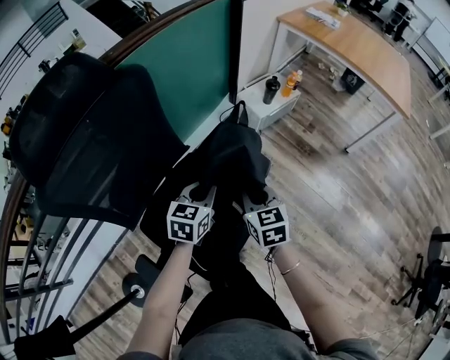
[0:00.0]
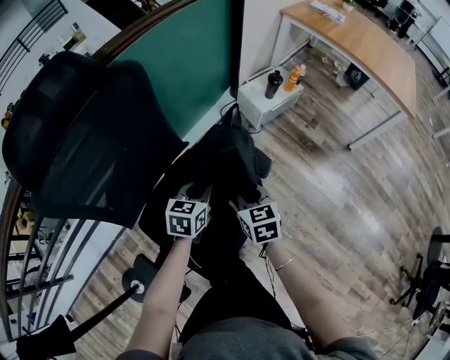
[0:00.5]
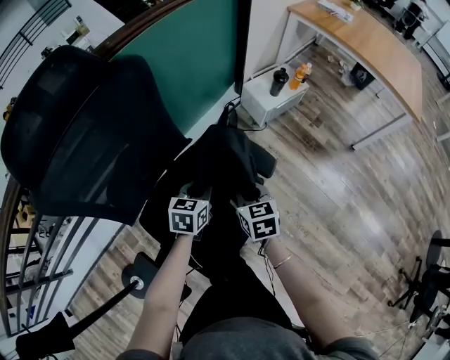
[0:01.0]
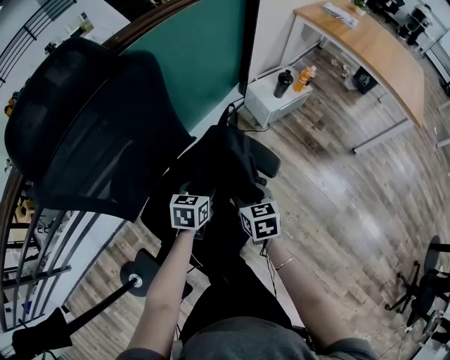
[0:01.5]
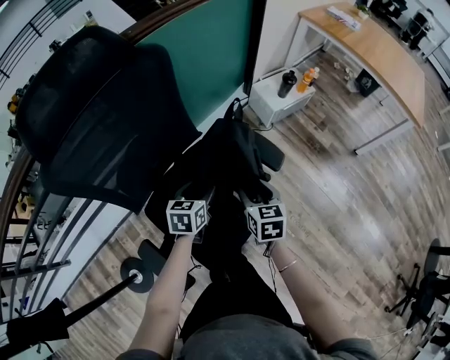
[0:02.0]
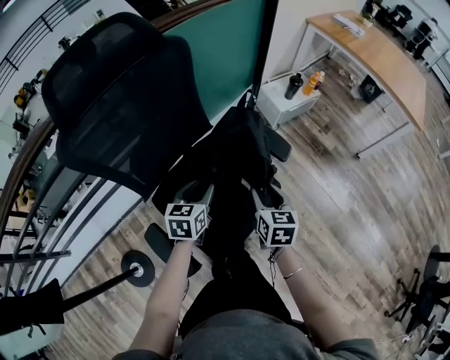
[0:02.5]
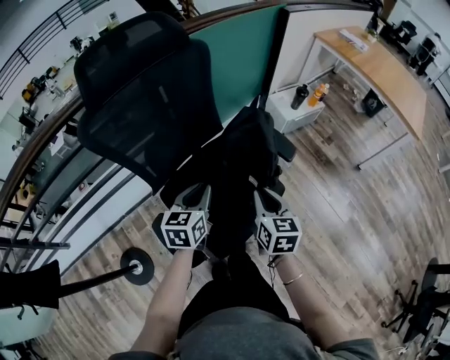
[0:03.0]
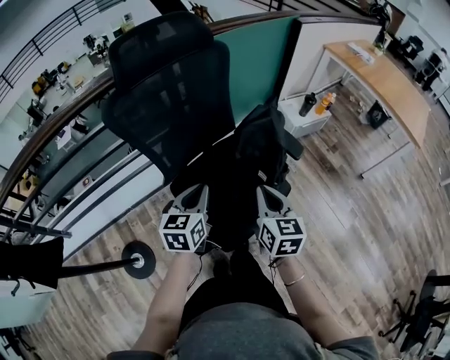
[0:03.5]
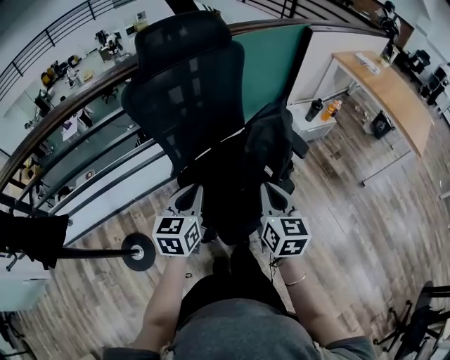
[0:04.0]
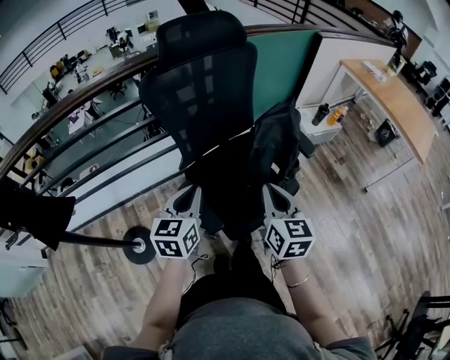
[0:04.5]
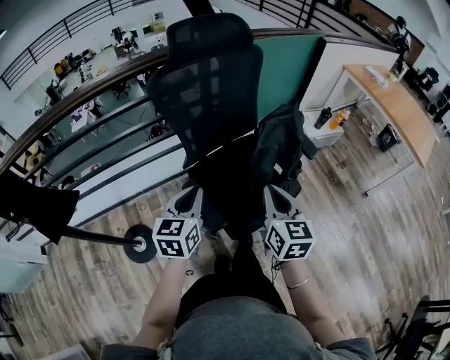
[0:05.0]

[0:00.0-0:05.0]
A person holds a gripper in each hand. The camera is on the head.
0:00.0 to 0:02.5: The right gripper moves backward, about 5 cm, and opens up; the left gripper heads to the left and backward, covering some 15 cm, and opens up.
0:02.5 to 0:05.0: The right gripper travels backward, upward and to the left by some 25 cm, turns by approximately 20 degrees, and closes, while the left gripper shifts about 30 cm backward, to the left and upward, turns by approximately 20 degrees, and closes up.

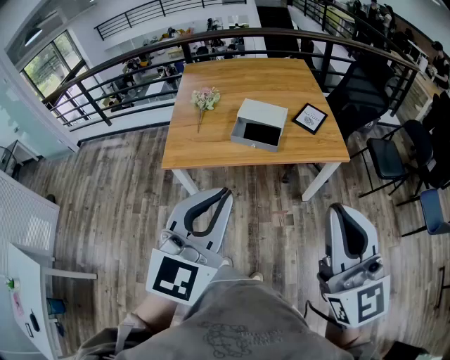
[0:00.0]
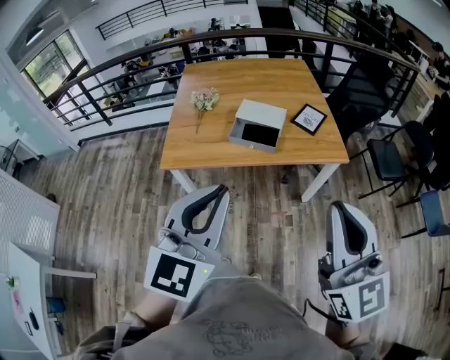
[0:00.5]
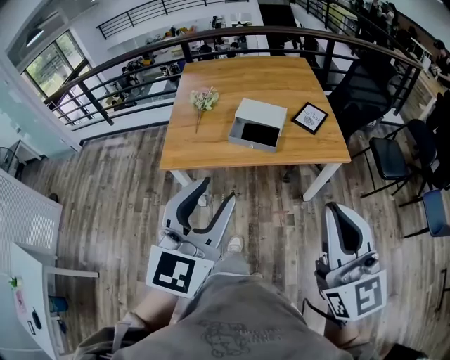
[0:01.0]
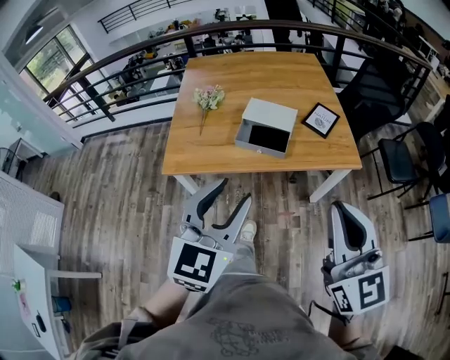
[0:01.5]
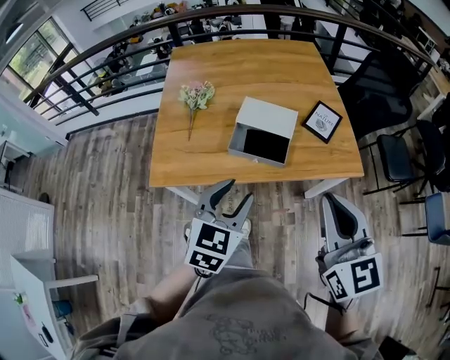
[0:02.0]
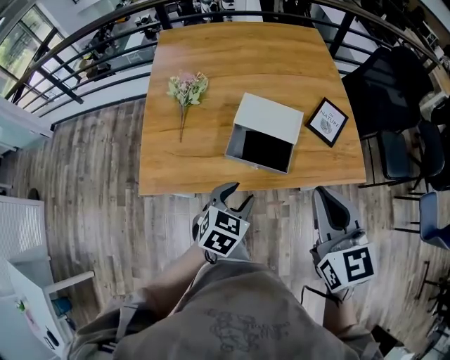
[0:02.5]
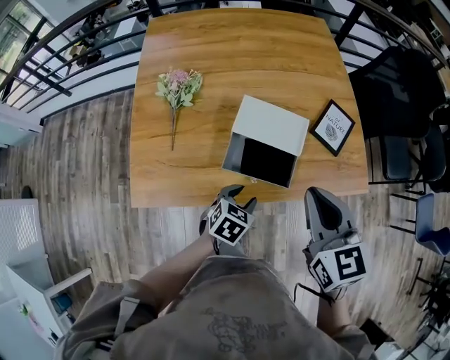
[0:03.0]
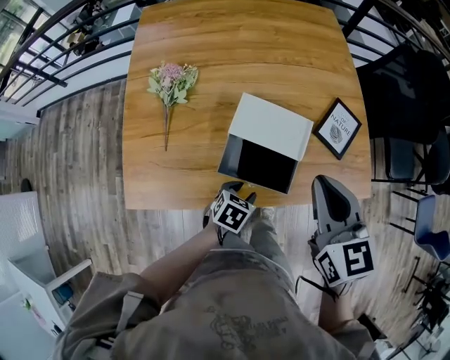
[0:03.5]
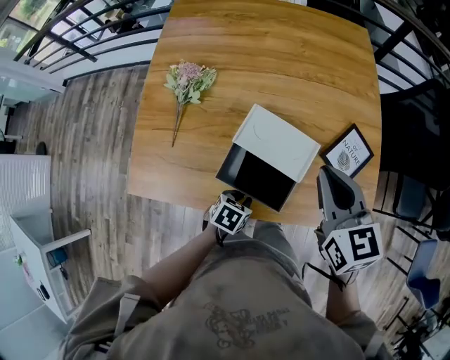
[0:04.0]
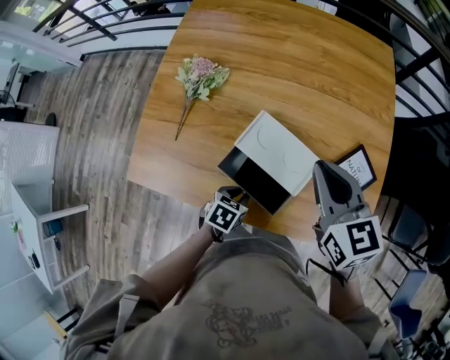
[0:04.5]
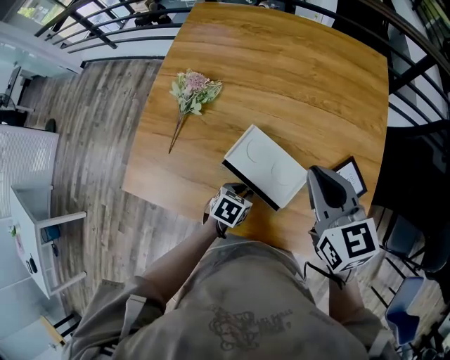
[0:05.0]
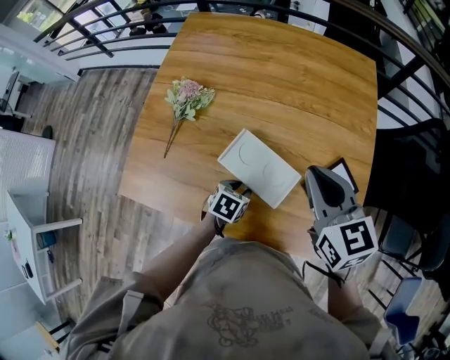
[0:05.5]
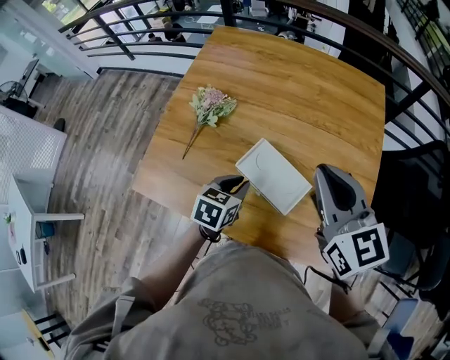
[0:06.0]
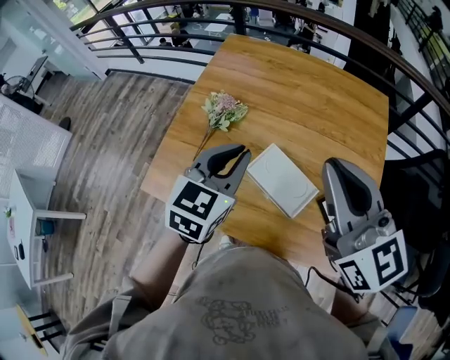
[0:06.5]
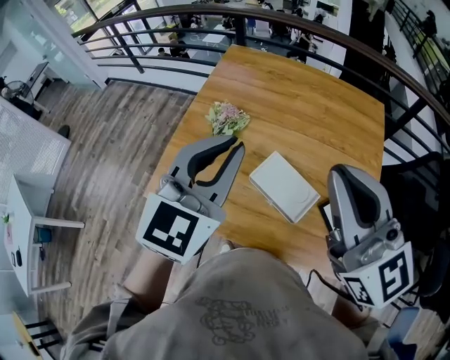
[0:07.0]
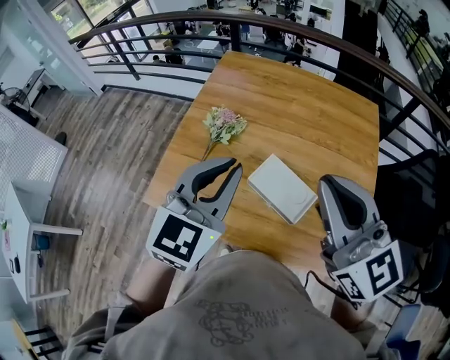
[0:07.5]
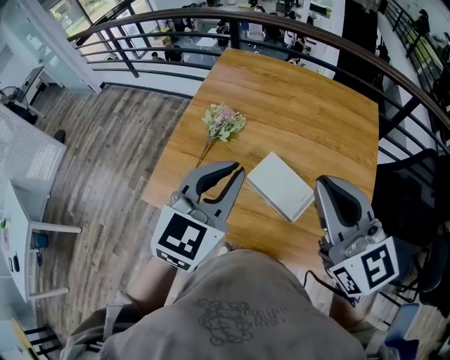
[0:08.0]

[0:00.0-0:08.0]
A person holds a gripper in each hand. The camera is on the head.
0:00.0 to 0:02.0: Both grippers move forward and downward, approximately 25 cm. The left gripper changes its angle by roughly 20 degrees, and opens.
0:02.0 to 0:04.0: The left gripper moves downward and forward, some 35 cm, tips its fingers downward by about 30 degrees, and closes up; the right gripper moves forward, about 30 cm, and swivels some 20 degrees.
0:04.0 to 0:06.0: The right gripper shifts about 10 cm upward, and rotates approximately 20 degrees. The left gripper shifts some 15 cm upward, and turns by some 30 degrees.
0:06.0 to 0:08.0: The left gripper heads upward, covering roughly 25 cm, and changes its angle by roughly 40 degrees; the right gripper travels upward, to the left and backward by some 10 cm.

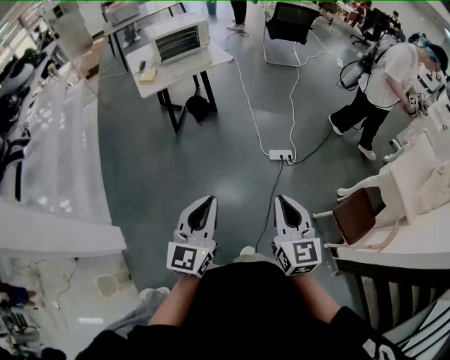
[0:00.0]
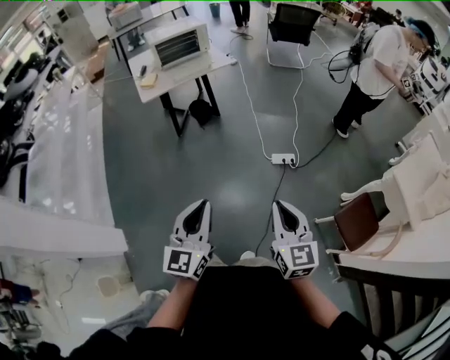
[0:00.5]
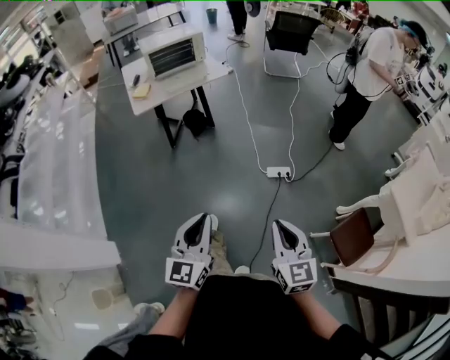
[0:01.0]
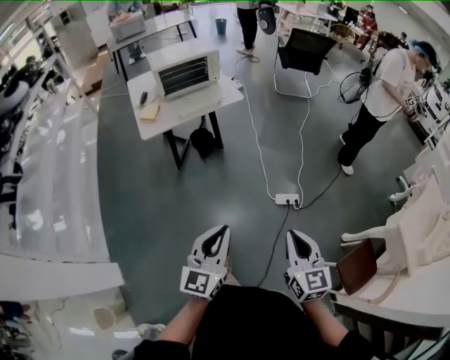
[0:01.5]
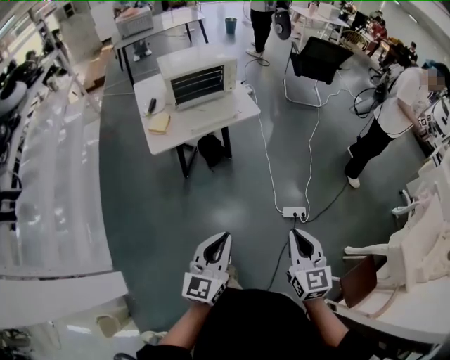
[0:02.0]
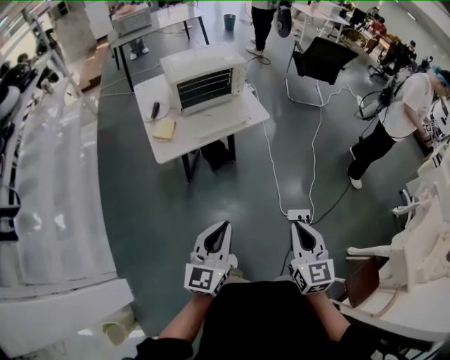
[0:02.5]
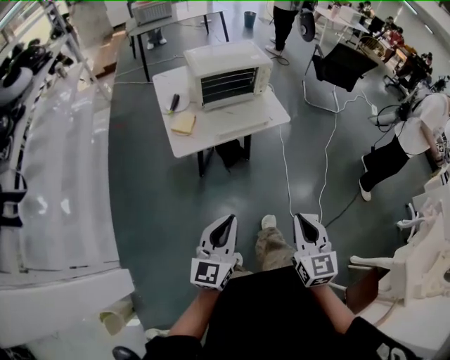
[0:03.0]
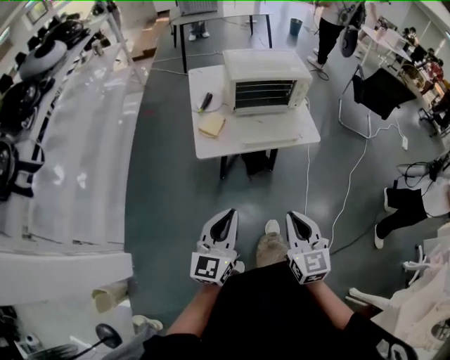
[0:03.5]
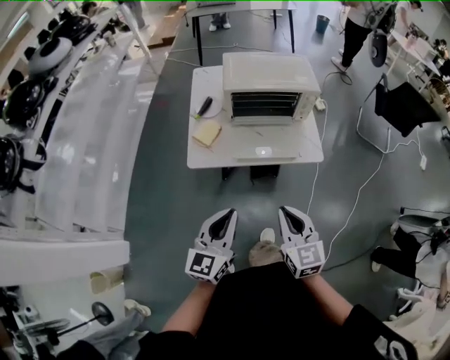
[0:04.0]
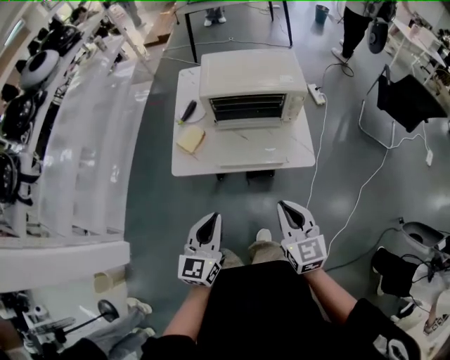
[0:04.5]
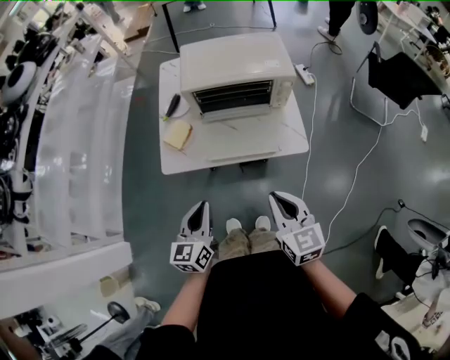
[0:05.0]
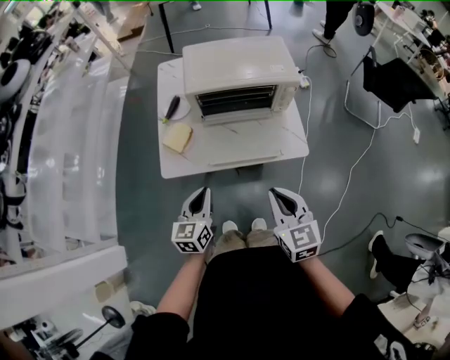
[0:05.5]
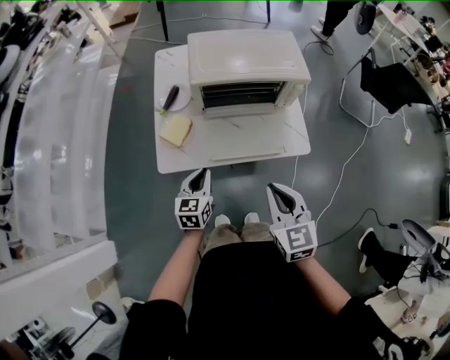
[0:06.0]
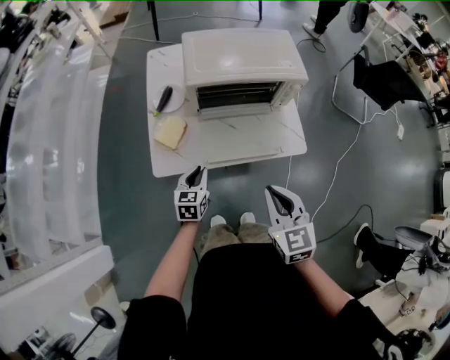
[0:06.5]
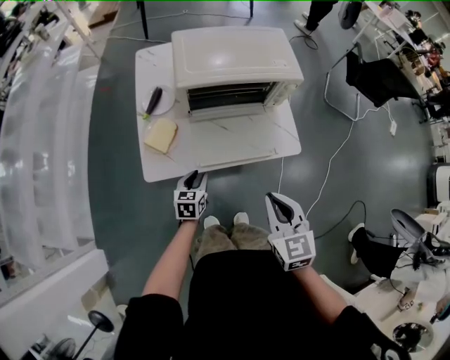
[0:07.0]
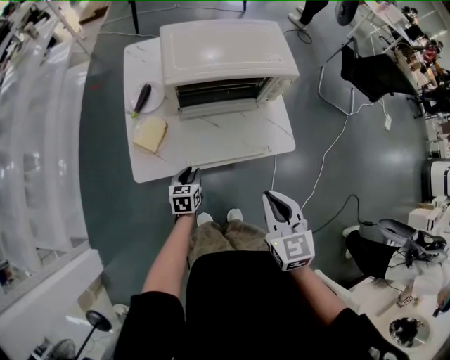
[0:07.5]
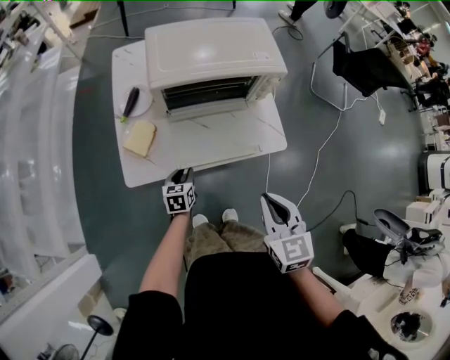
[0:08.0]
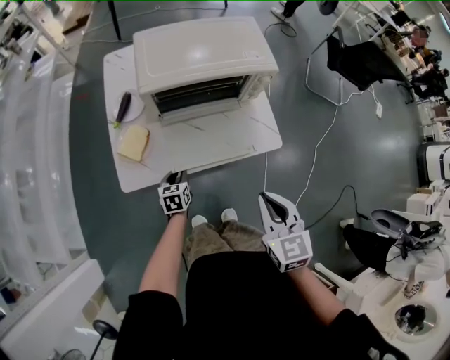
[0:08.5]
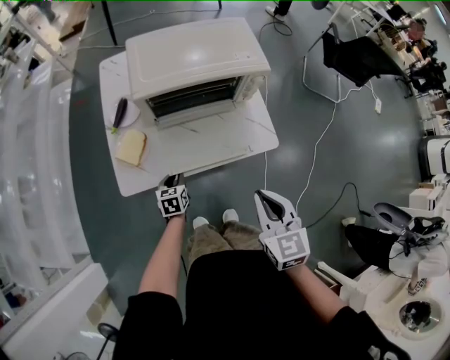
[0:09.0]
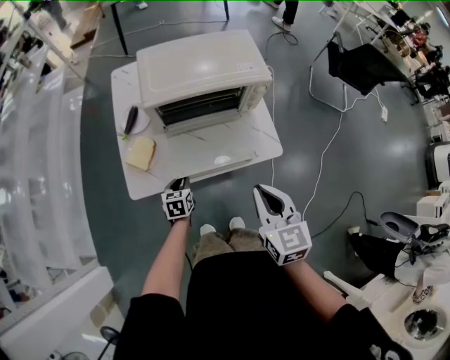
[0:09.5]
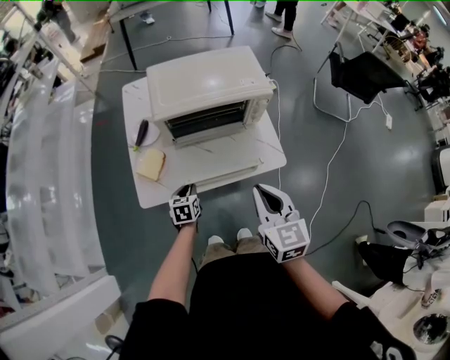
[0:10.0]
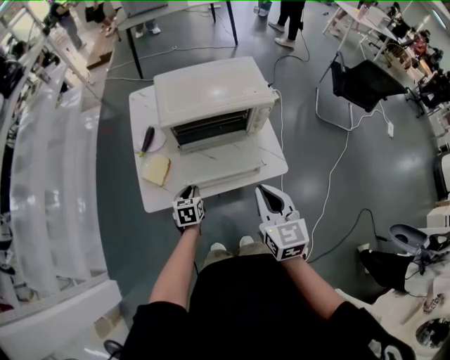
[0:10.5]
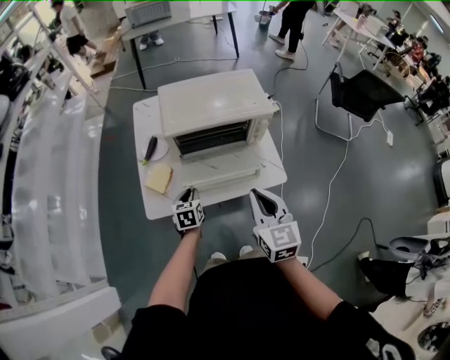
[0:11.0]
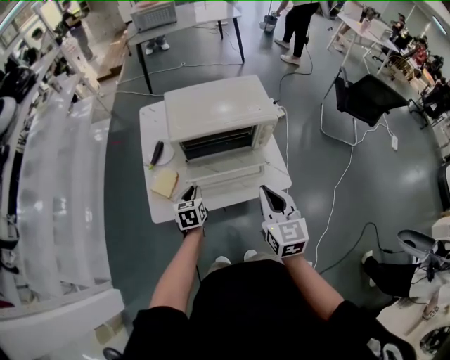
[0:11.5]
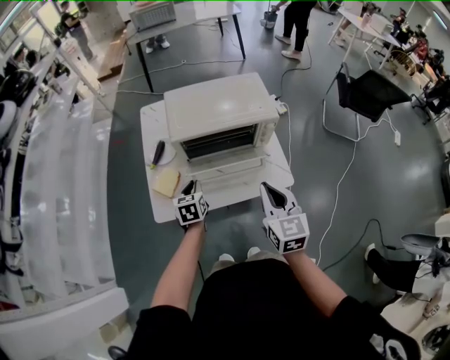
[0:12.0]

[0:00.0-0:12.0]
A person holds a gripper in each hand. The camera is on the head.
0:00.0 to 0:02.0: Both grippers travel together forward, roughly 35 cm.
0:02.0 to 0:04.0: The right gripper shifts by about 40 cm, and changes its angle by roughly 30 degrees. The left gripper ends up approximately 35 cm from where it was, and swivels about 20 degrees.
0:04.0 to 0:06.0: The left gripper travels forward and downward by about 30 cm, and rotates approximately 20 degrees, while the right gripper goes approximately 15 cm forward.
0:06.0 to 0:08.0: The right gripper moves about 5 cm; the left gripper travels downward by about 15 cm, and opens.
0:08.0 to 0:10.0: The right gripper moves forward, about 5 cm.
0:10.0 to 0:12.0: The left gripper moves upward and forward, approximately 15 cm.

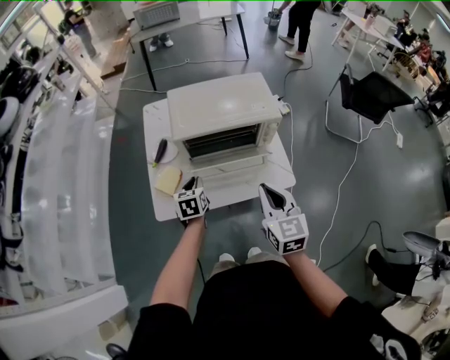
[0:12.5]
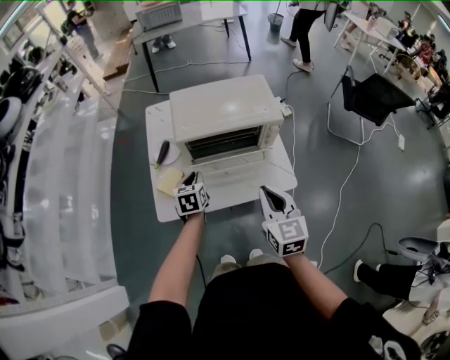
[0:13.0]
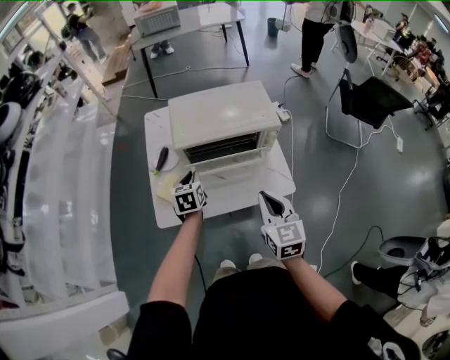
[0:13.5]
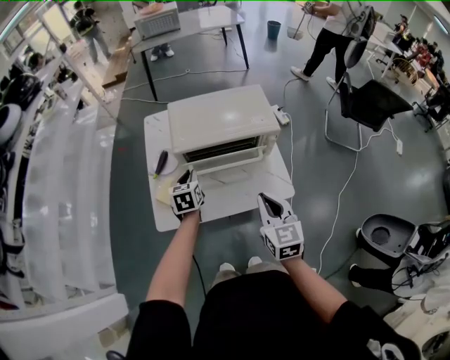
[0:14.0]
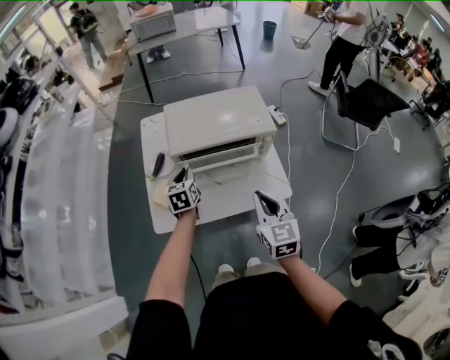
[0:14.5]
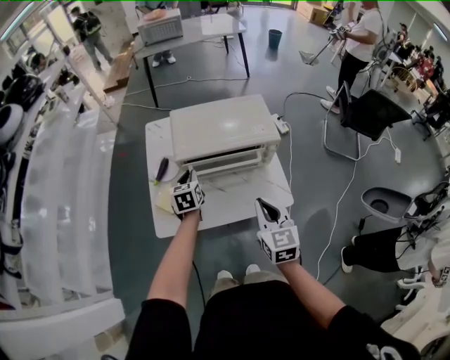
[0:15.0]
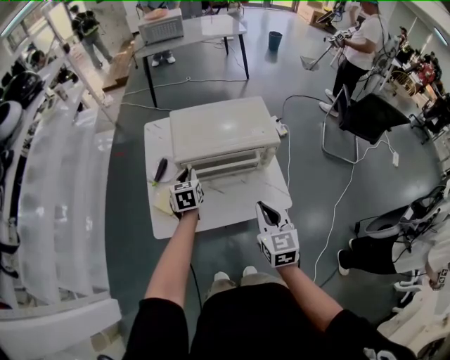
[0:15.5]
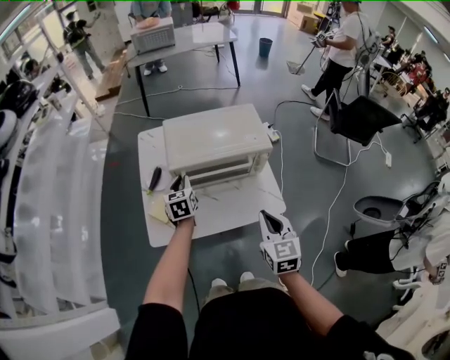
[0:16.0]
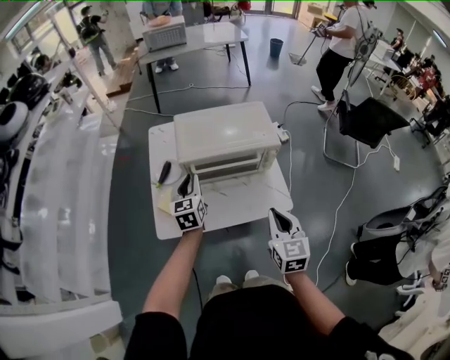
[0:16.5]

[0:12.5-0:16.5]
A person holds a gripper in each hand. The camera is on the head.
0:12.5 to 0:14.5: The left gripper travels forward by some 10 cm.
0:14.5 to 0:16.5: The left gripper shifts some 10 cm upward.
